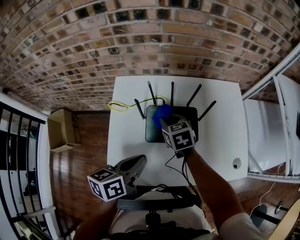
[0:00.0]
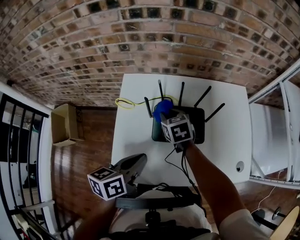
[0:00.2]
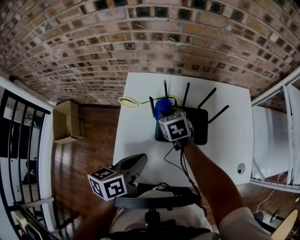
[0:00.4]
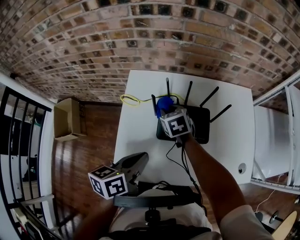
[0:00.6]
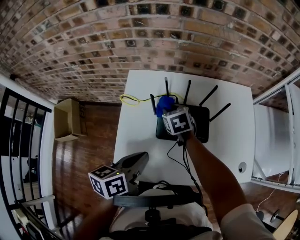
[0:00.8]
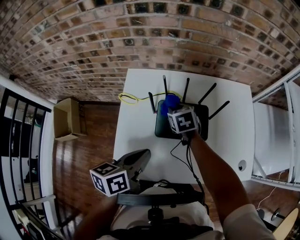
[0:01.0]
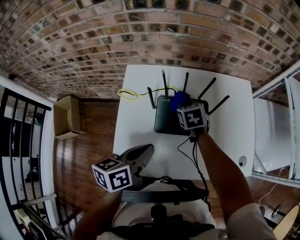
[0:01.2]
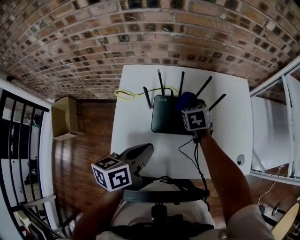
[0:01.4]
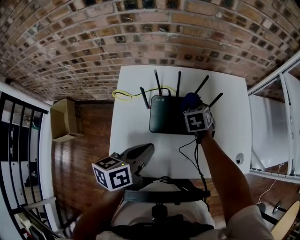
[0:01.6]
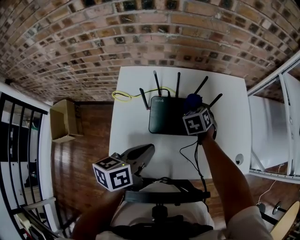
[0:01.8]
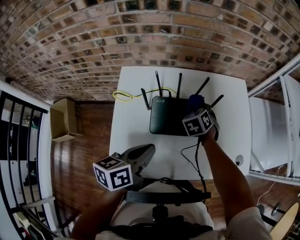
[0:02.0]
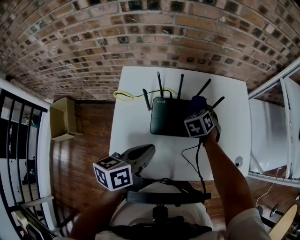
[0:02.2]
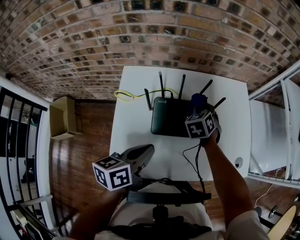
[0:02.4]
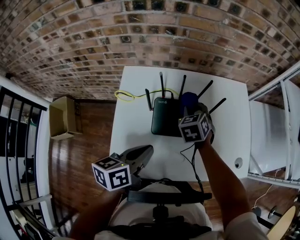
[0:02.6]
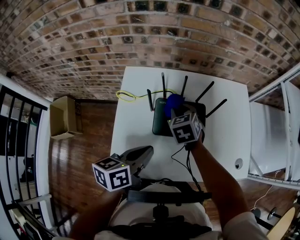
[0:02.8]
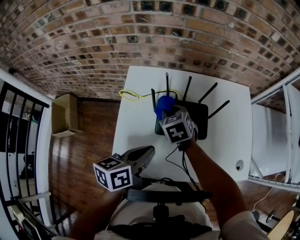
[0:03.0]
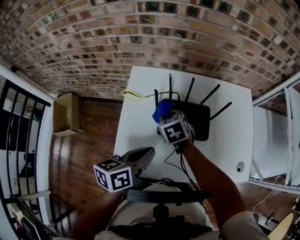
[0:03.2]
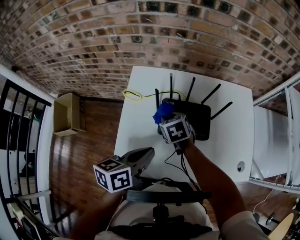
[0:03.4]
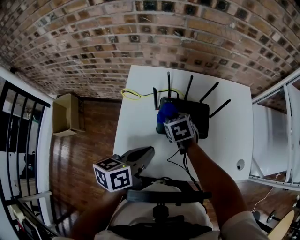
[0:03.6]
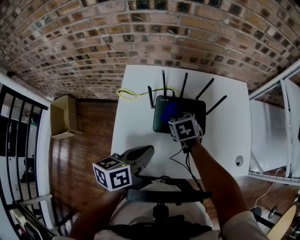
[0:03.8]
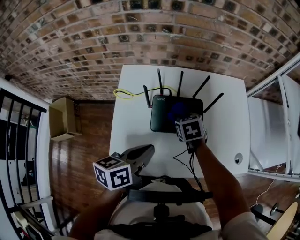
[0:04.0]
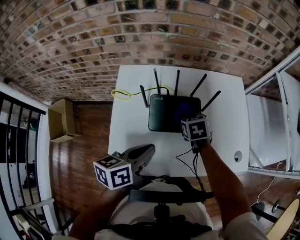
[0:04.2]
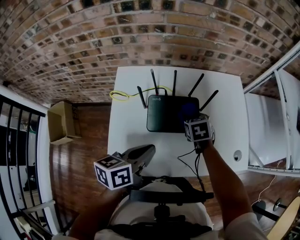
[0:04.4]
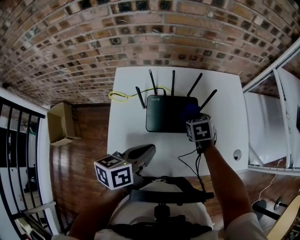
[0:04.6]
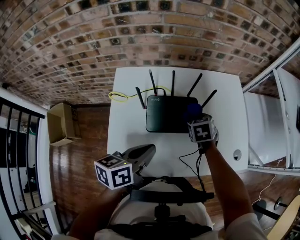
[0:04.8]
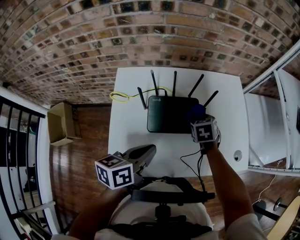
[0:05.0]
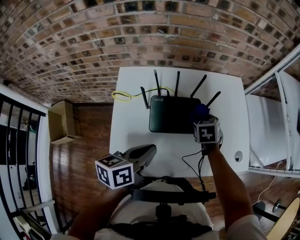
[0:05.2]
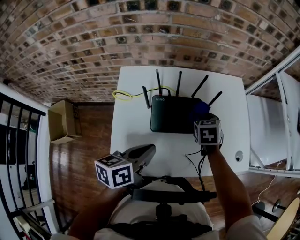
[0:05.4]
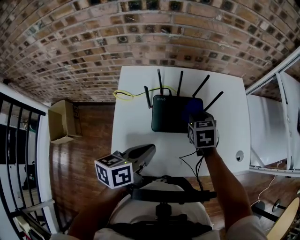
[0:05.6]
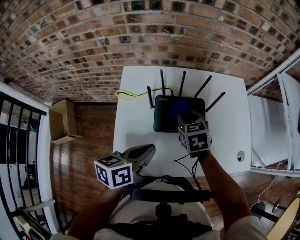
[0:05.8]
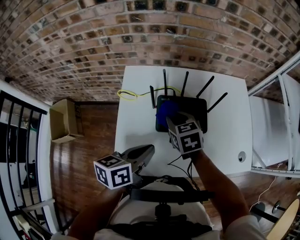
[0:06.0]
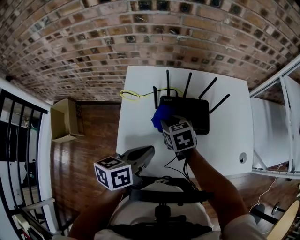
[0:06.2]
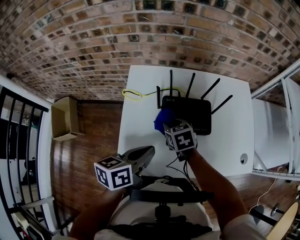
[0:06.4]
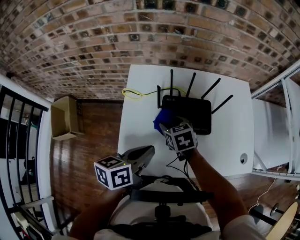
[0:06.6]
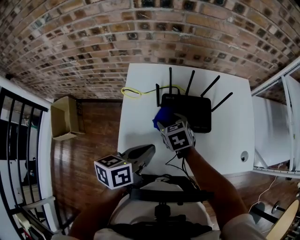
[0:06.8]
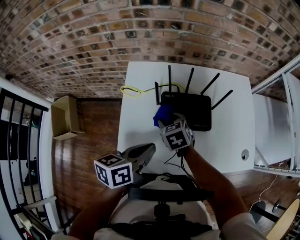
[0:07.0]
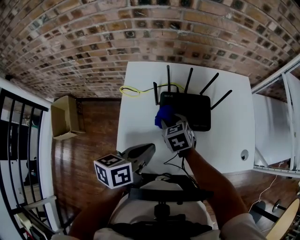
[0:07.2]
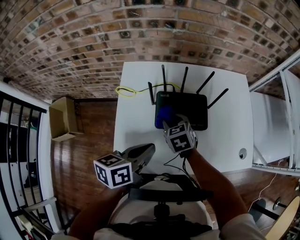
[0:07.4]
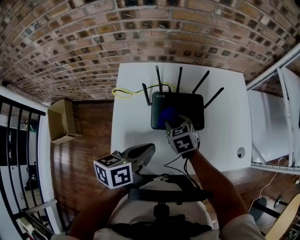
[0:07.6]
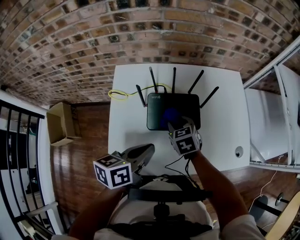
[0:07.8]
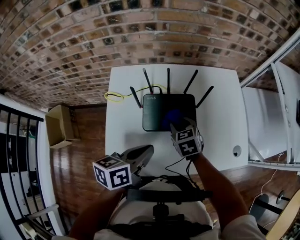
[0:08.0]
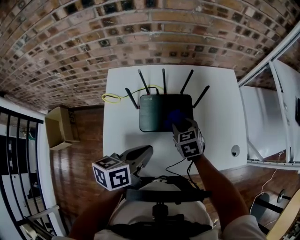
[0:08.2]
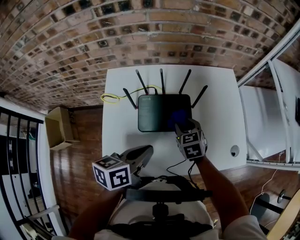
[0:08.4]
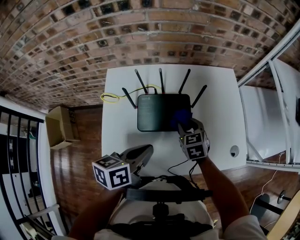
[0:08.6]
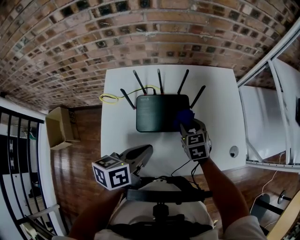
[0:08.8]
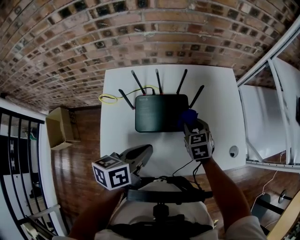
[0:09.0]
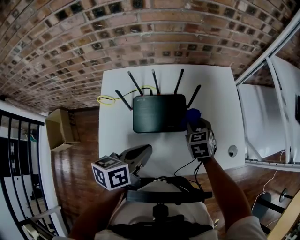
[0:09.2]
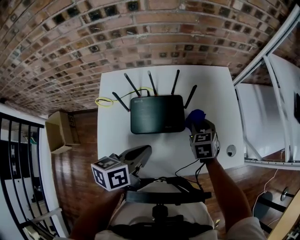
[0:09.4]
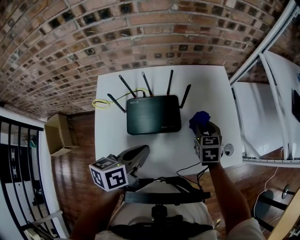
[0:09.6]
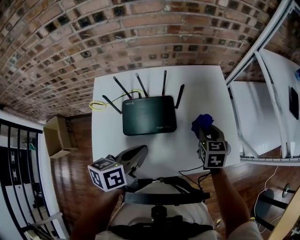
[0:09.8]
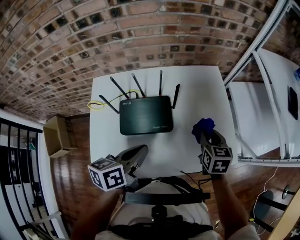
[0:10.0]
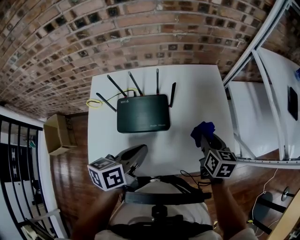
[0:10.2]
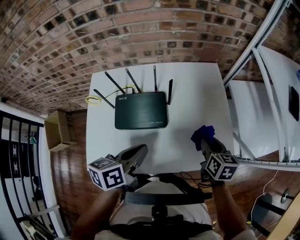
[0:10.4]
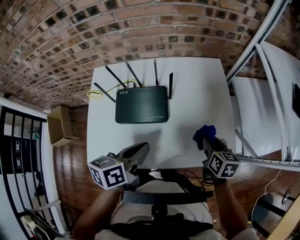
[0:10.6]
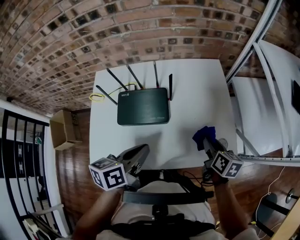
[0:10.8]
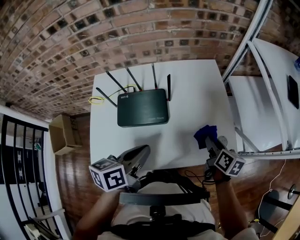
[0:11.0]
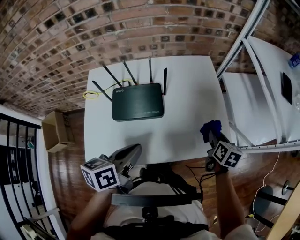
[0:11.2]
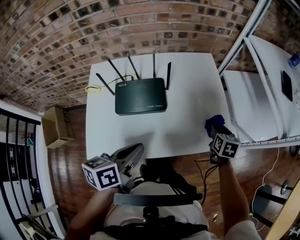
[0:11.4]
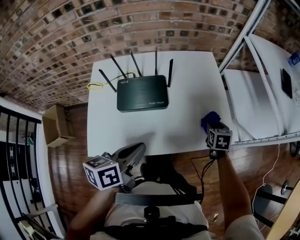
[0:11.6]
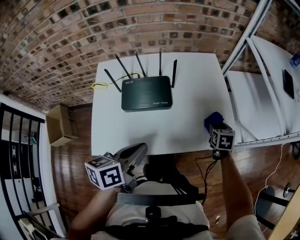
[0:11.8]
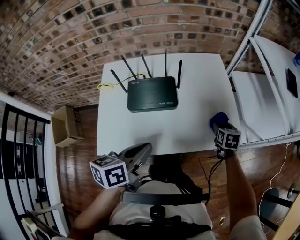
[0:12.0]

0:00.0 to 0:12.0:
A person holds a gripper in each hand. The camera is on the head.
0:00.0 to 0:01.6: The right gripper travels to the right by some 10 cm, and rotates some 20 degrees.
0:01.6 to 0:03.0: The right gripper heads to the left and backward, covering approximately 15 cm.
0:03.0 to 0:04.4: The right gripper moves to the right, approximately 15 cm.
0:04.4 to 0:06.0: The right gripper is displaced to the left, upward and backward by roughly 15 cm.
0:06.0 to 0:07.6: The right gripper is displaced downward by roughly 5 cm, and opens, then closes again.
0:07.6 to 0:09.0: The right gripper goes some 15 cm to the right. The left gripper shifts some 5 cm to the right.
0:09.0 to 0:10.4: The left gripper moves to the right, approximately 10 cm. The right gripper moves to the right, approximately 20 cm, and swivels some 30 degrees.
0:10.4 to 0:12.0: The right gripper heads downward and to the right, covering approximately 10 cm, swivels about 20 degrees, and opens up. The left gripper shifts approximately 15 cm backward.

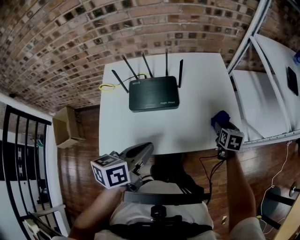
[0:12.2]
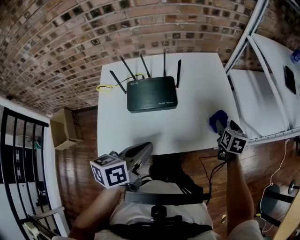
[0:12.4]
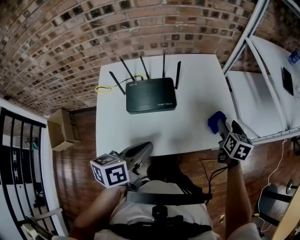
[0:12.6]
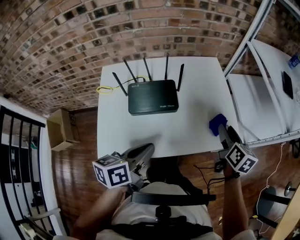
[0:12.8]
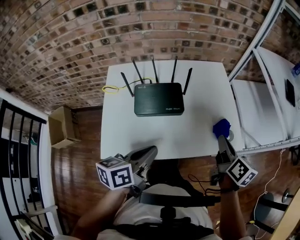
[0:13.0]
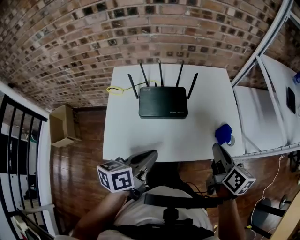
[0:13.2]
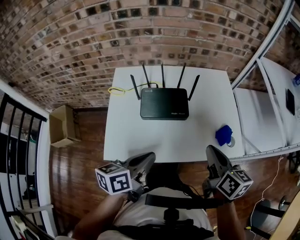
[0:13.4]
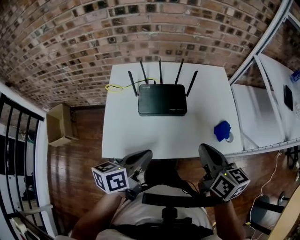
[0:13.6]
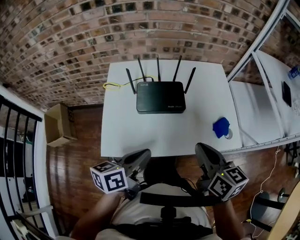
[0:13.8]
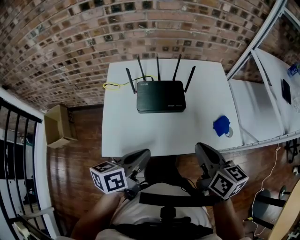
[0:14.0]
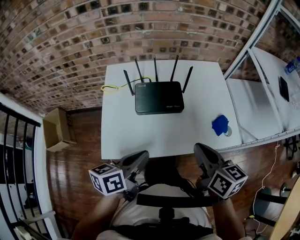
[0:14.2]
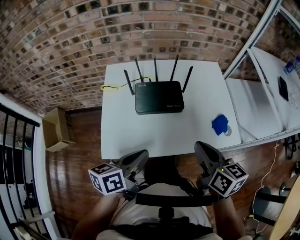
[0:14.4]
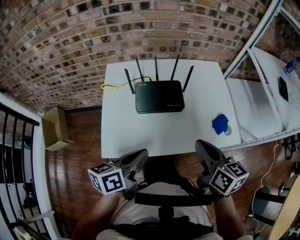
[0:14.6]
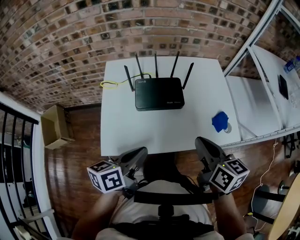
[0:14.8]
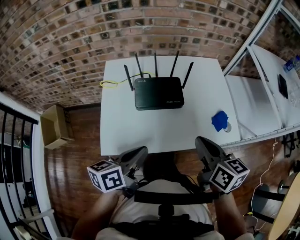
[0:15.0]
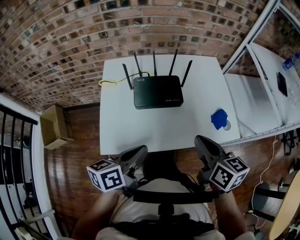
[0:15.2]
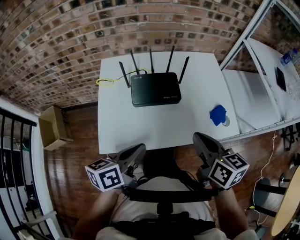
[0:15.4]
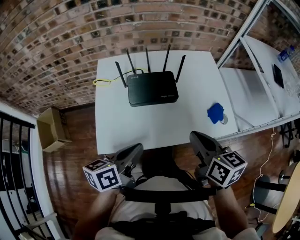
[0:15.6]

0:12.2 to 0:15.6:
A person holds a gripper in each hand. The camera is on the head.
0:12.2 to 0:13.8: The left gripper moves to the left and backward, about 10 cm, while the right gripper heads upward, to the left and backward, covering about 35 cm, turns by some 40 degrees, and closes up.
0:13.8 to 0:15.6: There are only small adjustments of the grippers.

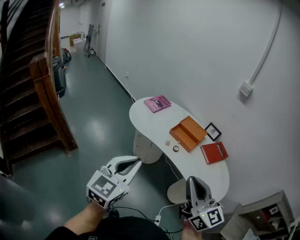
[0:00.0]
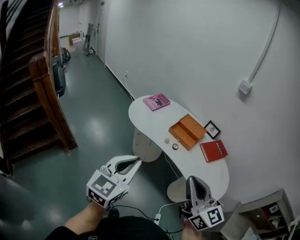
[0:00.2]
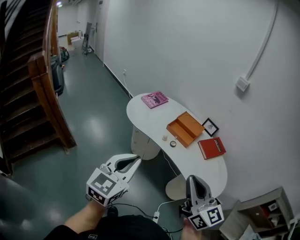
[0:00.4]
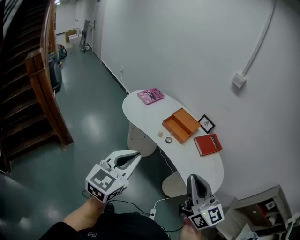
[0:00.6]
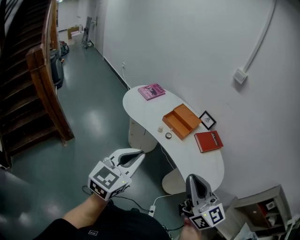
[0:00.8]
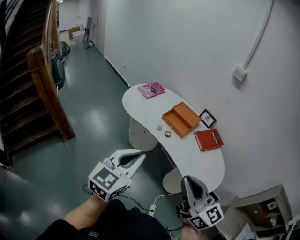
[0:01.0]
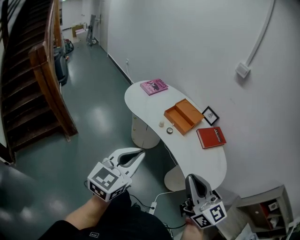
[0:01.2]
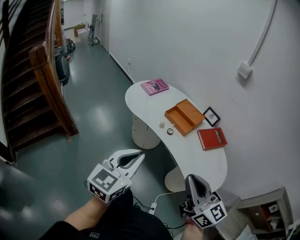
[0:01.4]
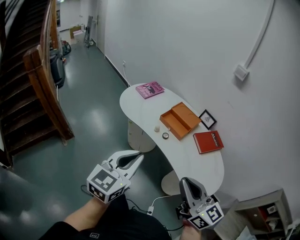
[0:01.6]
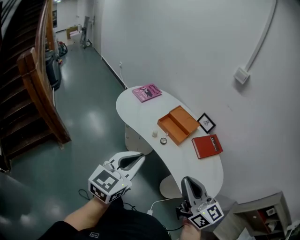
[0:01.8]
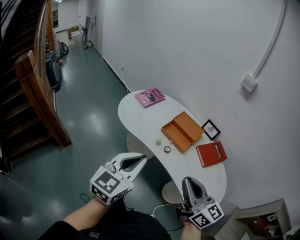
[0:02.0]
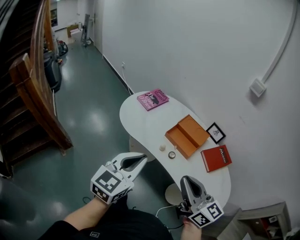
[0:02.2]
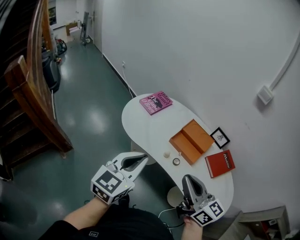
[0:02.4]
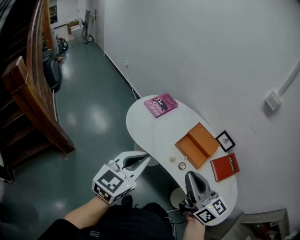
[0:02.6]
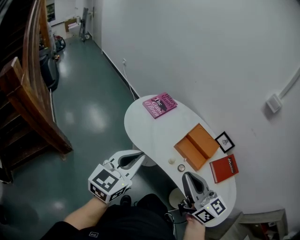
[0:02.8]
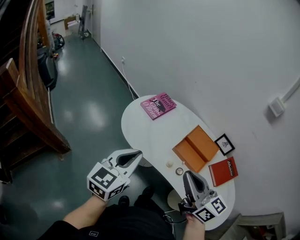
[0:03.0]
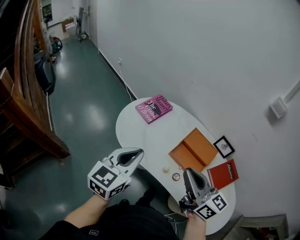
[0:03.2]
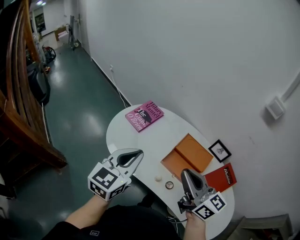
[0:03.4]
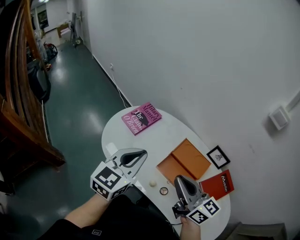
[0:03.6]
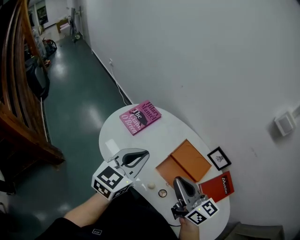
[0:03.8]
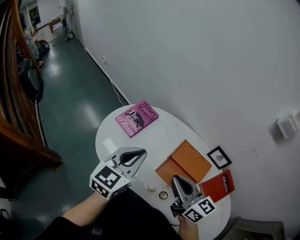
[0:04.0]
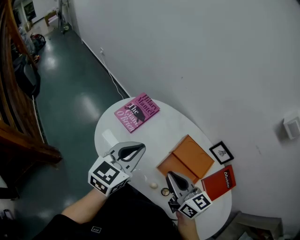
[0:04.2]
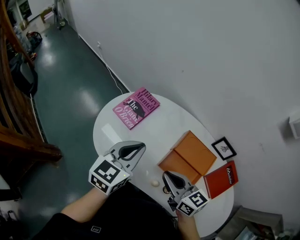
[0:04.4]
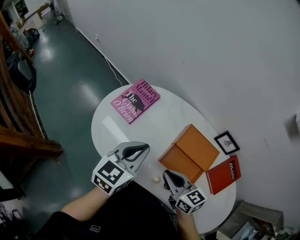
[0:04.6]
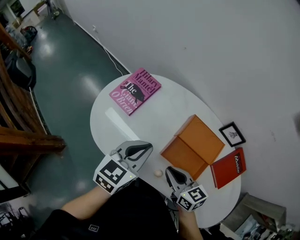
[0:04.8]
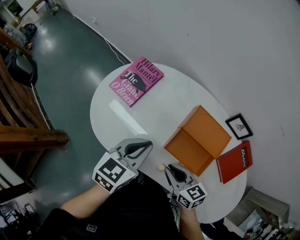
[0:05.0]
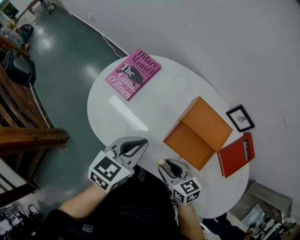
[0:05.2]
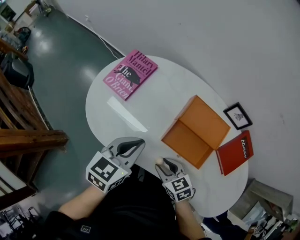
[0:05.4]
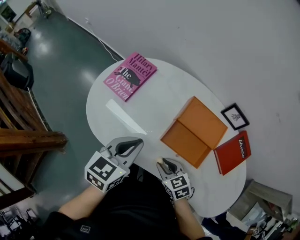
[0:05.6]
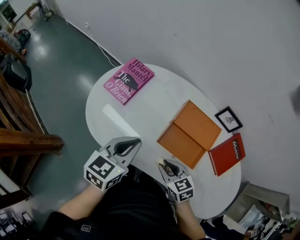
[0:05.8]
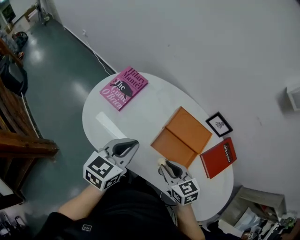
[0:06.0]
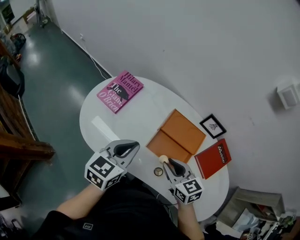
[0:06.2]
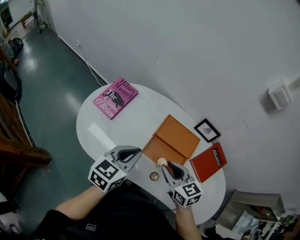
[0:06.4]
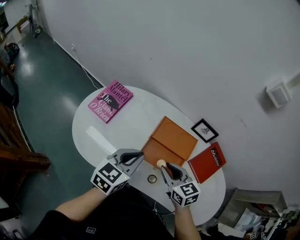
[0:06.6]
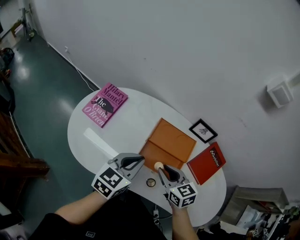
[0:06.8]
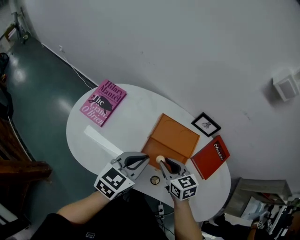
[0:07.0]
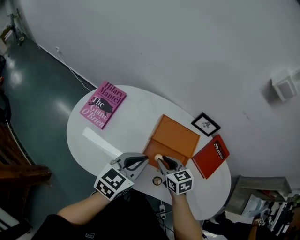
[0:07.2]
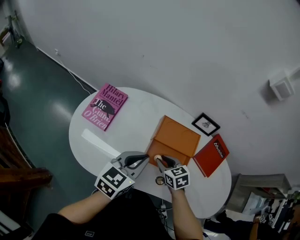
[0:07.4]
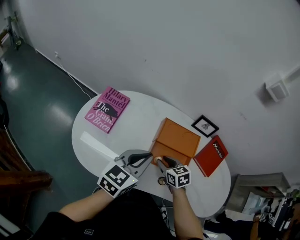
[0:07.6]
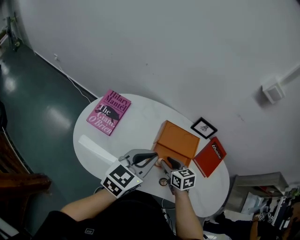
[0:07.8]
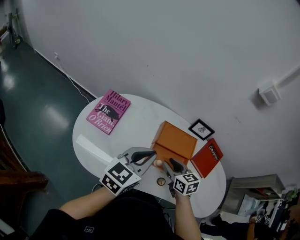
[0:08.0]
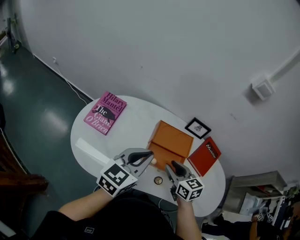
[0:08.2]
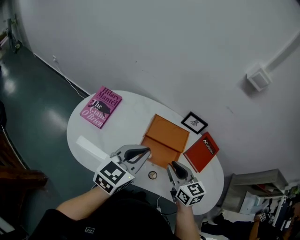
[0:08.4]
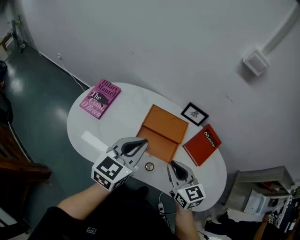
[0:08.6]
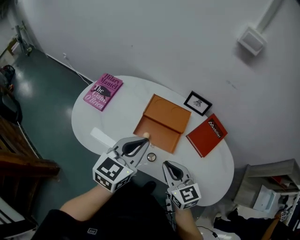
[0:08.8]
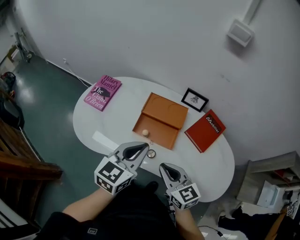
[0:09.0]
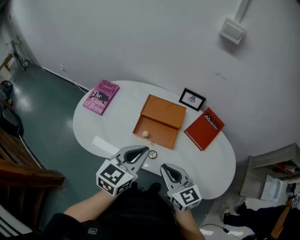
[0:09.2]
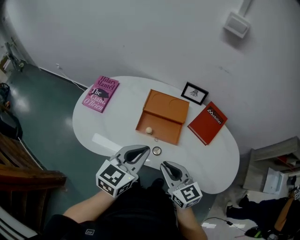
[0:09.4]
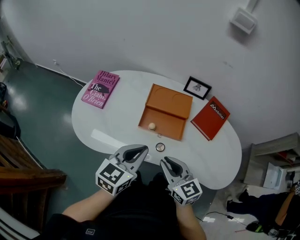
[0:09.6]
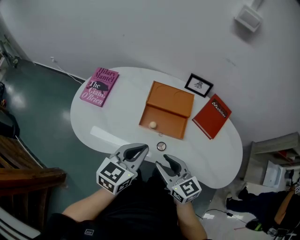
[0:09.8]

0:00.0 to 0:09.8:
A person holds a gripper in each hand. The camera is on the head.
0:00.0 to 0:01.4: The grippers both shift to the right by some 10 cm.
0:01.4 to 0:02.8: The left gripper shifts about 30 cm forward, while the right gripper heads forward and to the left, covering about 35 cm.
0:02.8 to 0:04.2: The left gripper heads forward and to the right, covering some 30 cm. Meanwhile the right gripper heads forward and downward, covering about 25 cm.
0:04.2 to 0:05.6: The right gripper goes approximately 20 cm downward, and angles its fingers downward, by approximately 30 degrees, while the left gripper goes some 10 cm downward.
0:05.6 to 0:07.0: The left gripper travels to the right by roughly 10 cm, while the right gripper goes approximately 15 cm forward, to the right and upward, and turns by some 20 degrees.
0:07.0 to 0:08.4: The left gripper goes roughly 10 cm upward. The right gripper is displaced upward and backward by some 10 cm.
0:08.4 to 0:09.8: The right gripper goes roughly 15 cm backward; the left gripper shifts some 15 cm backward and downward.
